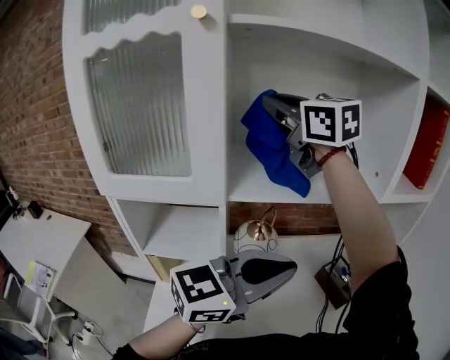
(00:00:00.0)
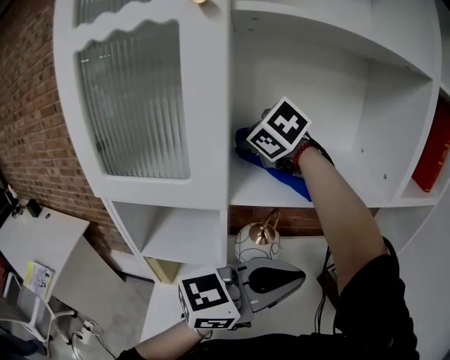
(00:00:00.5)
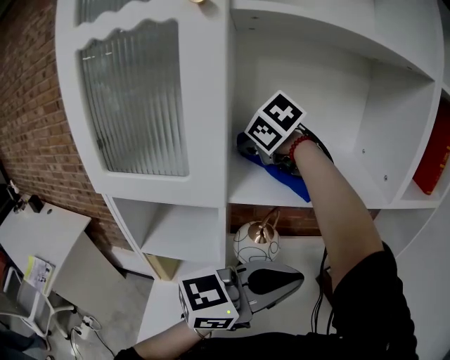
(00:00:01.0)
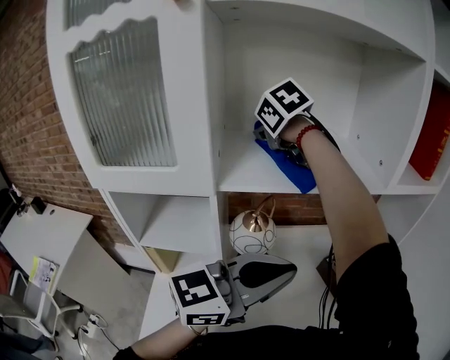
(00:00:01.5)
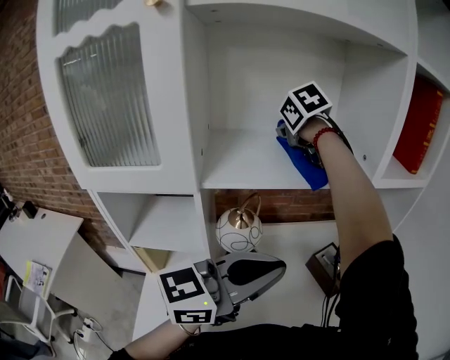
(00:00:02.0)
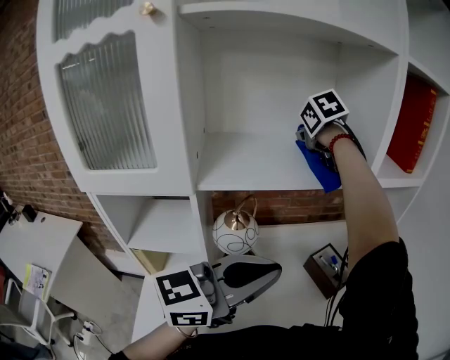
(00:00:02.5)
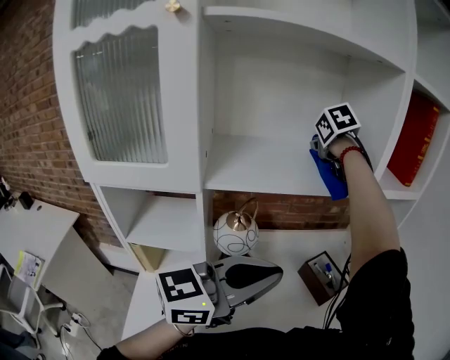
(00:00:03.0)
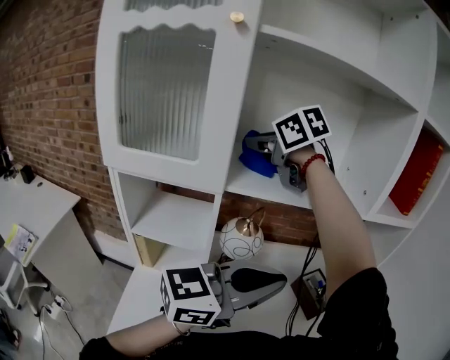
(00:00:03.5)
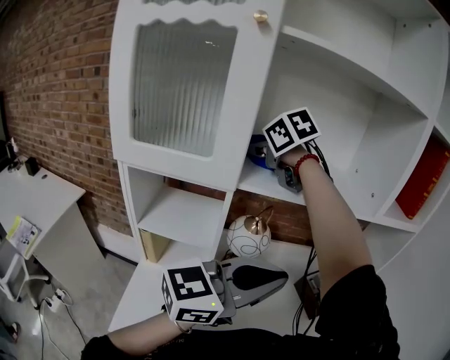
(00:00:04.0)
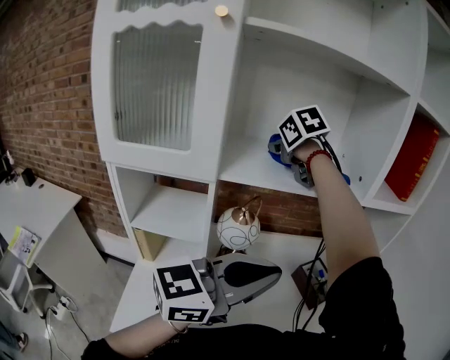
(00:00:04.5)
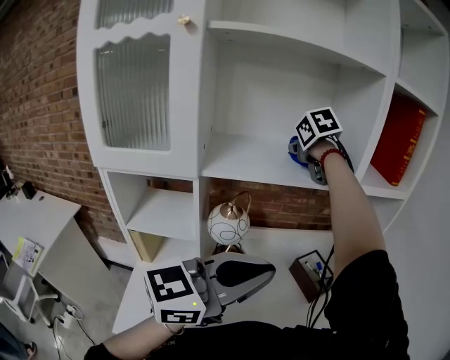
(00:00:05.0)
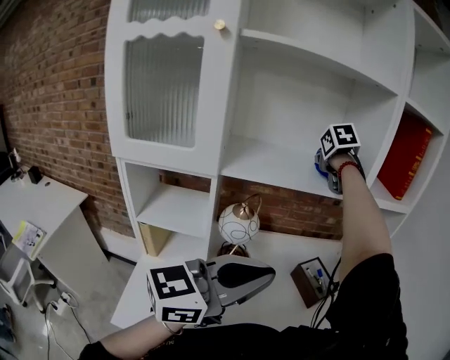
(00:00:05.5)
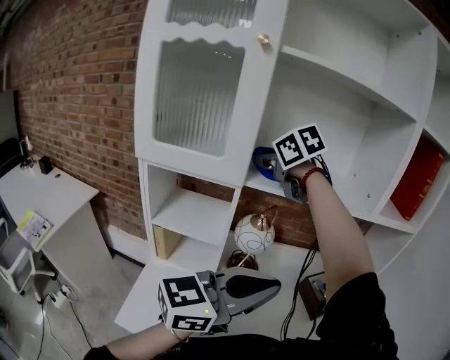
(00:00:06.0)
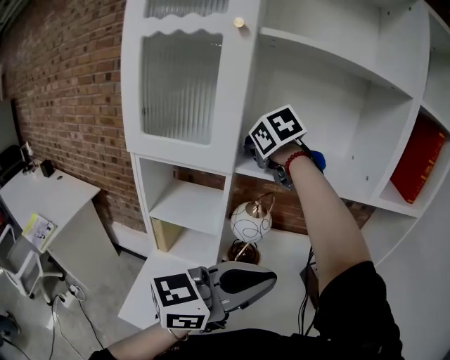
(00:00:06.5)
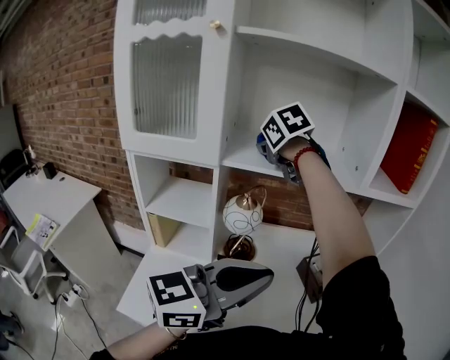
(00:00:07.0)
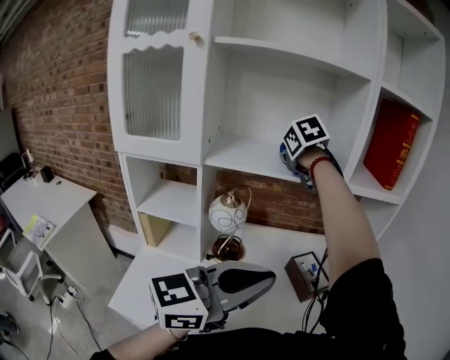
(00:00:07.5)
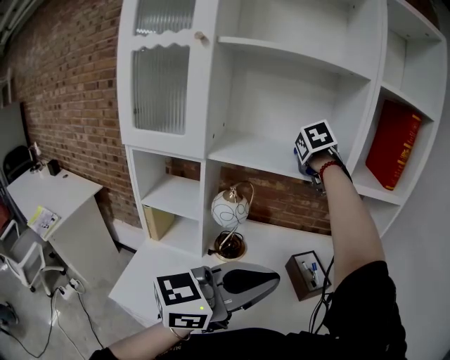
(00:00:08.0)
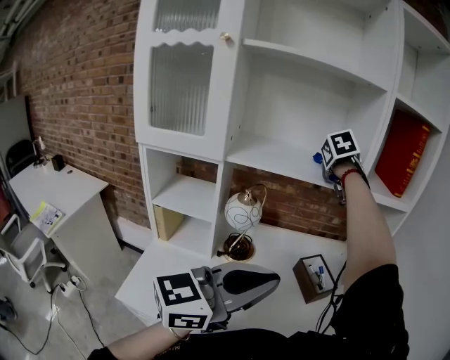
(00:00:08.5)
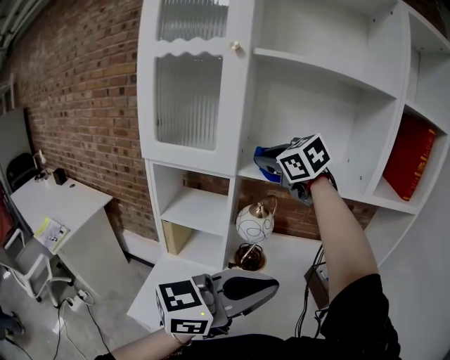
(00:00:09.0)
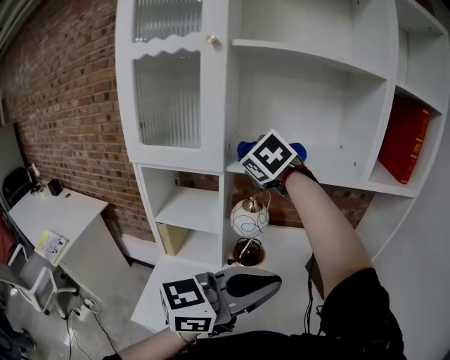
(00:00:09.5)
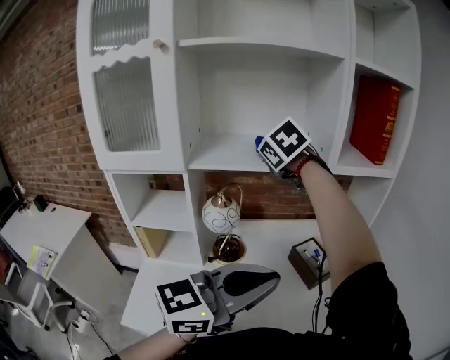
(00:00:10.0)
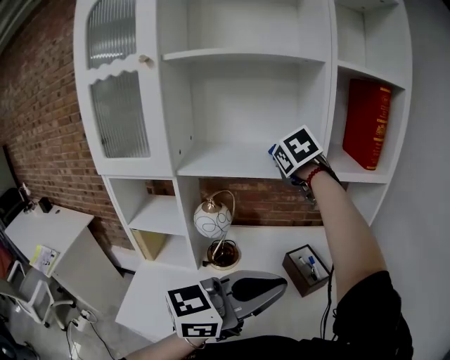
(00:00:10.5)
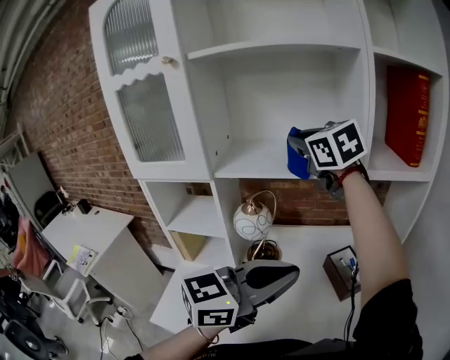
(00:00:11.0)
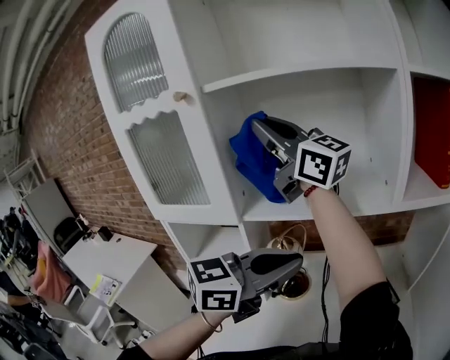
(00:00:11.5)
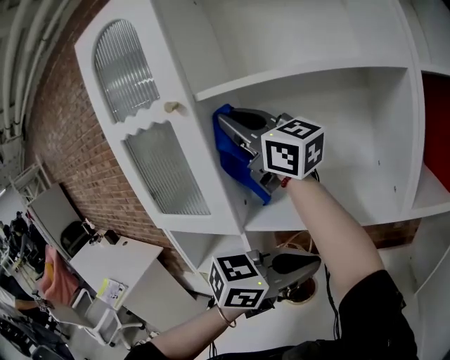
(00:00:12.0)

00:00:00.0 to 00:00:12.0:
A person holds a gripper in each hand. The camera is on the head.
00:00:00.0 to 00:00:02.0: The right gripper heads downward, forward and to the right, covering roughly 20 cm, and points its fingers about 40 degrees further downward.
00:00:02.0 to 00:00:04.0: The right gripper shifts roughly 20 cm backward and to the left, and turns by about 20 degrees.
00:00:04.0 to 00:00:06.0: Both grippers move backward, about 5 cm. The right gripper reaches some 25 cm to the right, then returns.
00:00:06.0 to 00:00:08.0: The left gripper moves to the right, roughly 15 cm. The right gripper moves to the right, approximately 25 cm, and rotates about 30 degrees.
00:00:08.0 to 00:00:10.0: The left gripper travels to the left and back again, roughly 10 cm each way, while the right gripper moves backward, approximately 5 cm, and moves roughly 20 cm to the left and comes back.
00:00:10.0 to 00:00:12.0: The left gripper moves about 20 cm; the right gripper heads upward, covering some 25 cm, and tips its fingers upward by approximately 60 degrees.

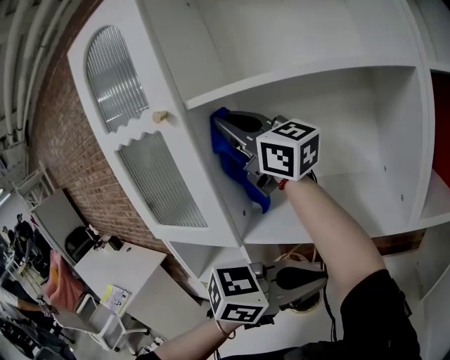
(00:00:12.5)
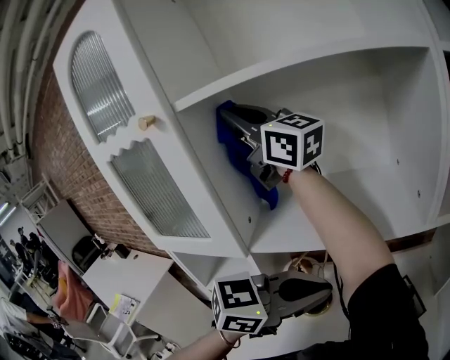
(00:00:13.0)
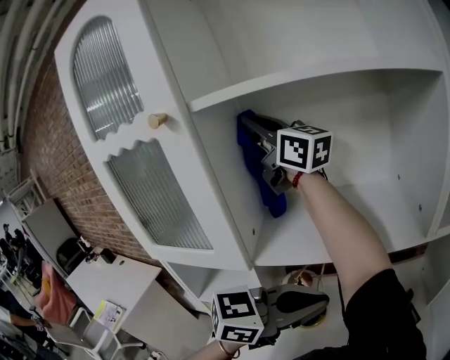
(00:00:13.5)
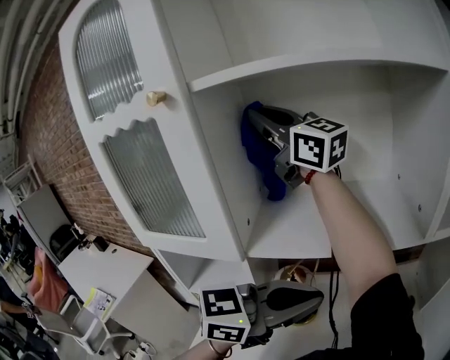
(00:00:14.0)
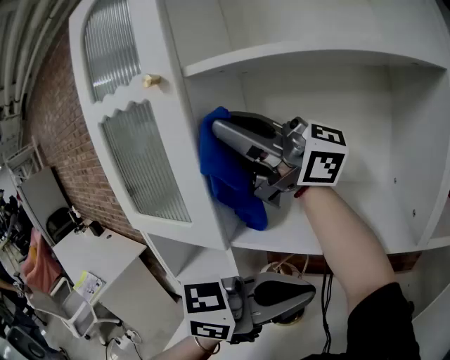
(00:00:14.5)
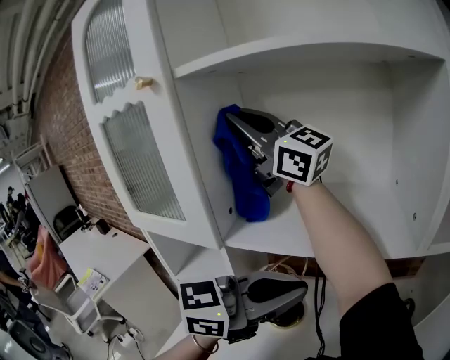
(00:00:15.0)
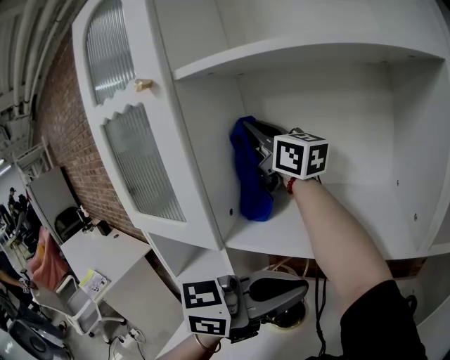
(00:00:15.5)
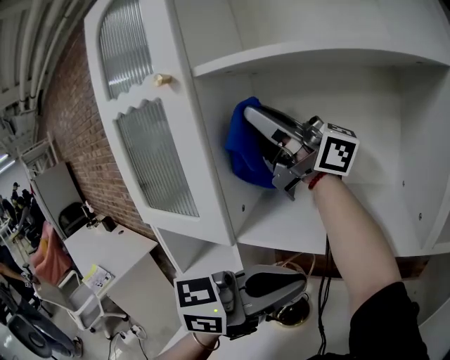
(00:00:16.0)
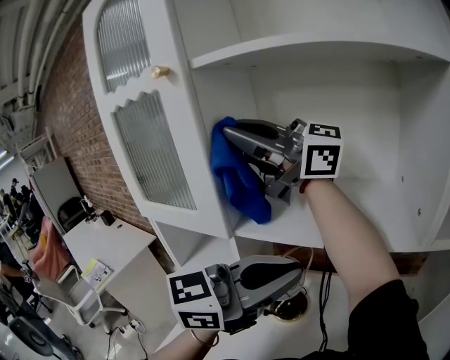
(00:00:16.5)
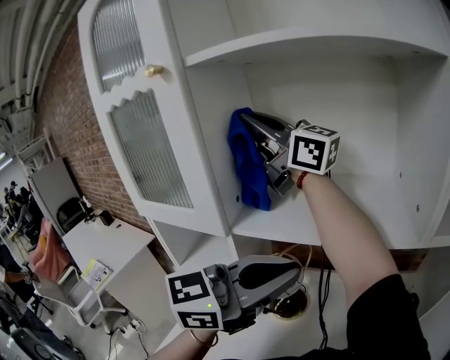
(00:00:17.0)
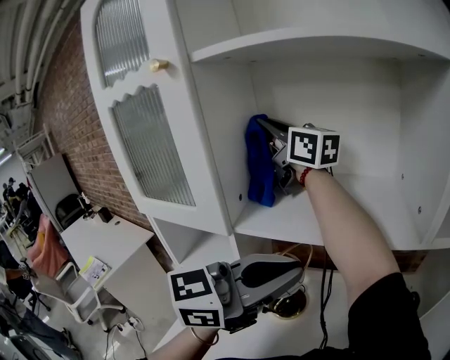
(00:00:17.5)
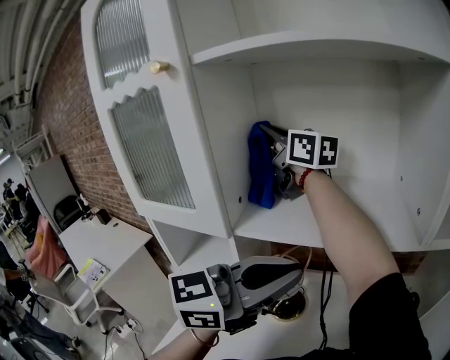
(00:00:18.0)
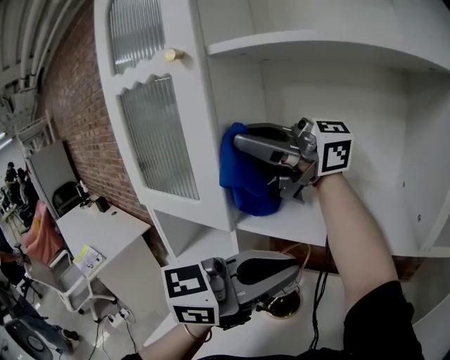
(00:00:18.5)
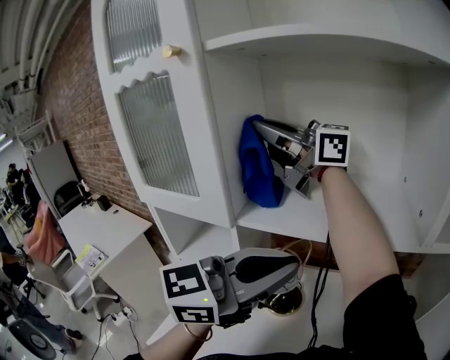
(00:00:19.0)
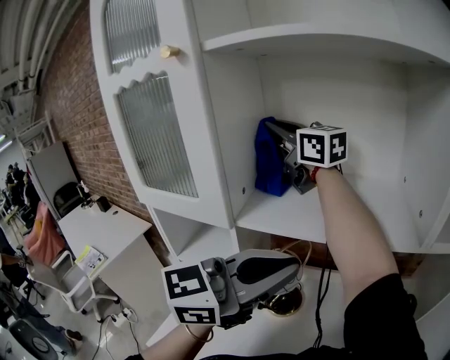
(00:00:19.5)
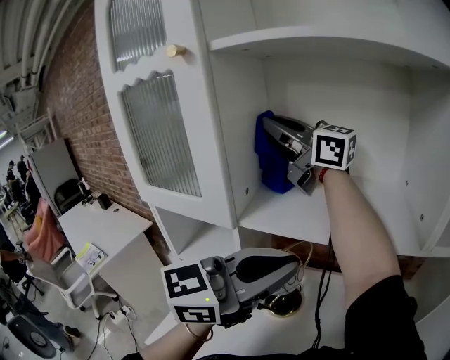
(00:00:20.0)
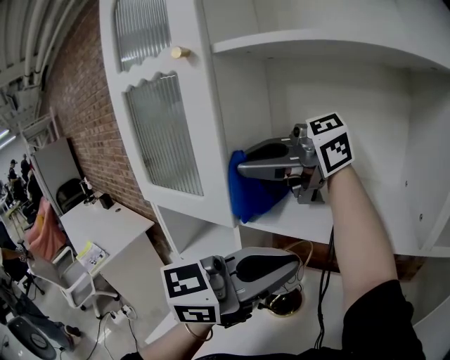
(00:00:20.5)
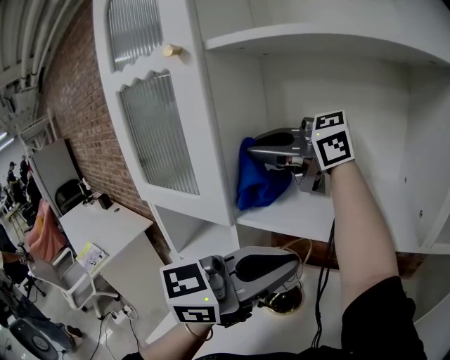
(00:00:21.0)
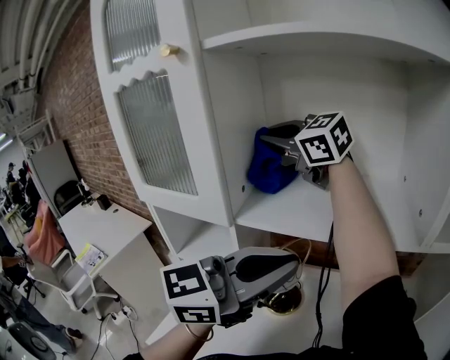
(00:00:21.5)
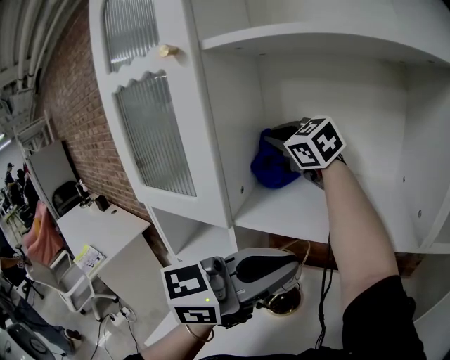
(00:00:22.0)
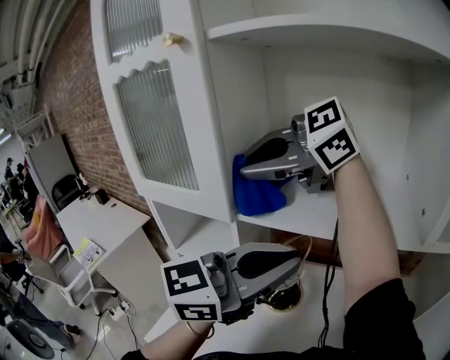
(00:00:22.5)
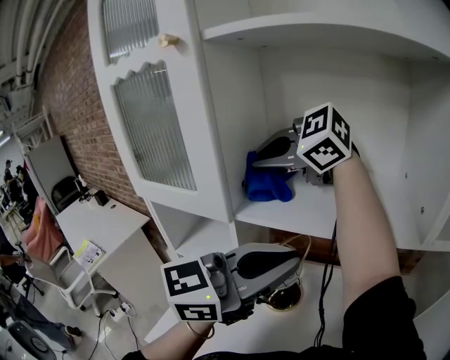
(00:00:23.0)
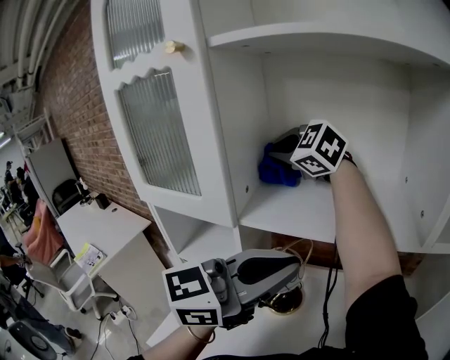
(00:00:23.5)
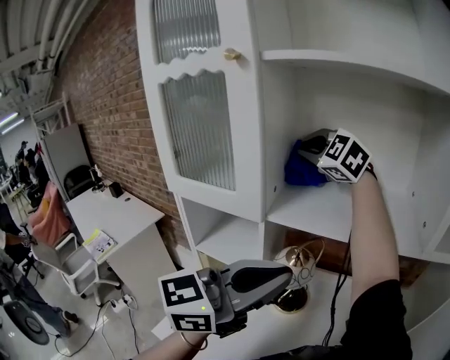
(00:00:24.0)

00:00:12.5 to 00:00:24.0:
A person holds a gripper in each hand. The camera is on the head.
00:00:12.5 to 00:00:14.5: The right gripper changes its angle by approximately 30 degrees.
00:00:14.5 to 00:00:16.5: The right gripper goes up and down, roughly 5 cm each way, reversing 2 times.
00:00:18.5 to 00:00:20.0: The right gripper ends up roughly 15 cm from where it was, and swivels about 40 degrees.
00:00:20.0 to 00:00:22.0: The right gripper travels downward by some 5 cm, and swivels approximately 40 degrees.
00:00:22.0 to 00:00:24.0: The left gripper ends up roughly 5 cm from where it was. Meanwhile the right gripper turns by about 20 degrees.

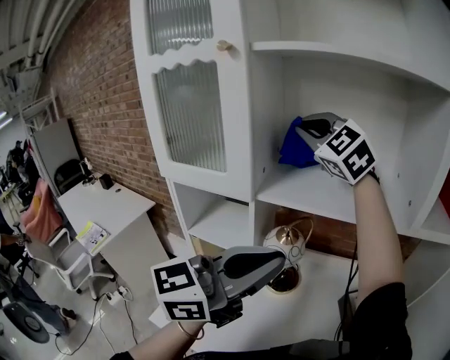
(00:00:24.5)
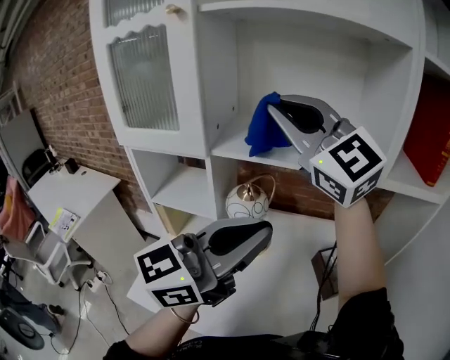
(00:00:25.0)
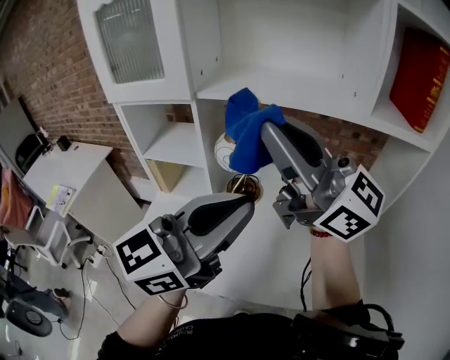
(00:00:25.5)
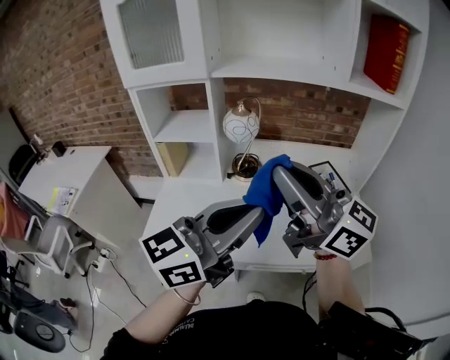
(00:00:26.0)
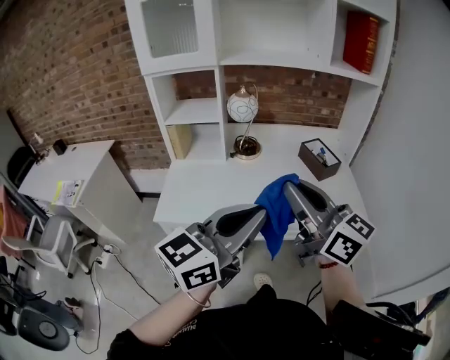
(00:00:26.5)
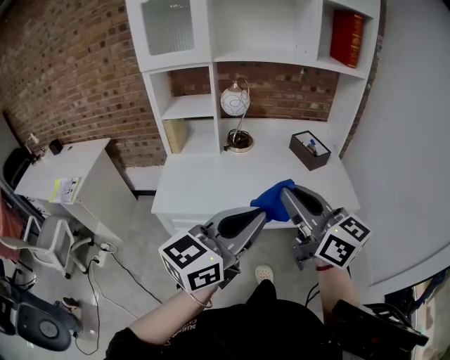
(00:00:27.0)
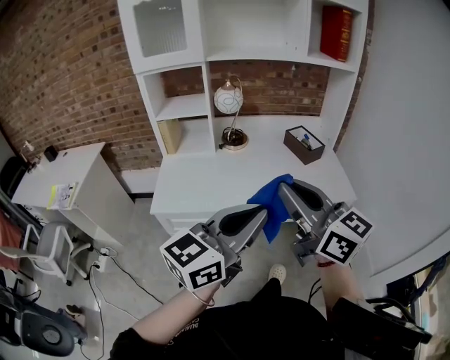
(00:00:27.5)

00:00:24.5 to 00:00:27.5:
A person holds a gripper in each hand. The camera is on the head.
00:00:24.5 to 00:00:26.0: The right gripper heads backward and downward, covering some 50 cm, and rolls clockwise, seen from behind, by roughly 60 degrees, while the left gripper goes roughly 25 cm backward and downward.
00:00:26.0 to 00:00:27.5: The two grippers go approximately 25 cm backward. The right gripper rotates some 20 degrees.
